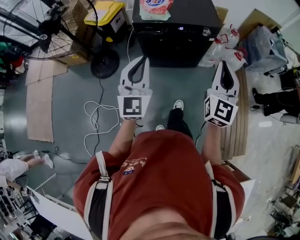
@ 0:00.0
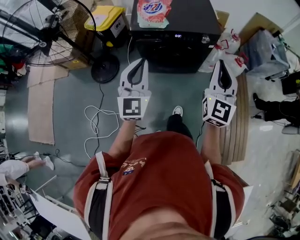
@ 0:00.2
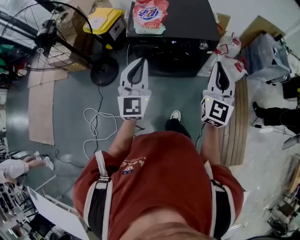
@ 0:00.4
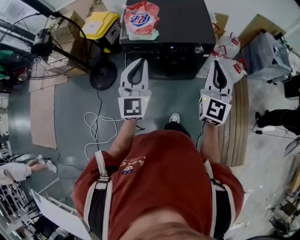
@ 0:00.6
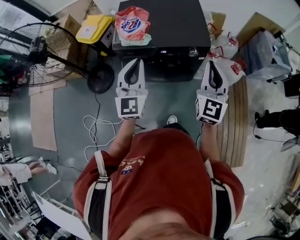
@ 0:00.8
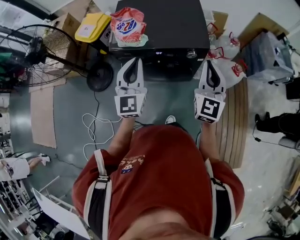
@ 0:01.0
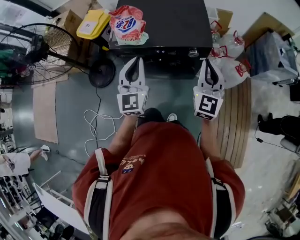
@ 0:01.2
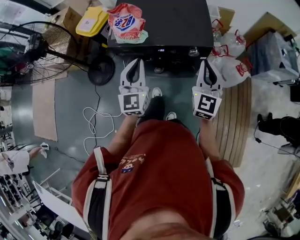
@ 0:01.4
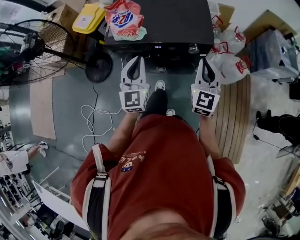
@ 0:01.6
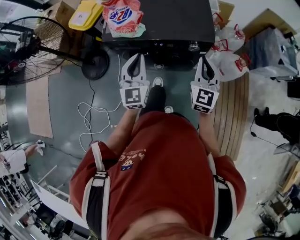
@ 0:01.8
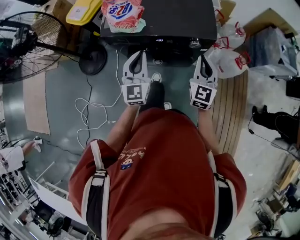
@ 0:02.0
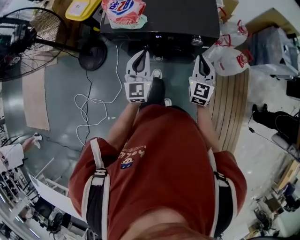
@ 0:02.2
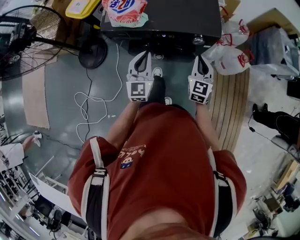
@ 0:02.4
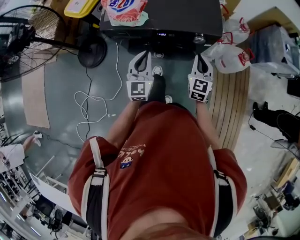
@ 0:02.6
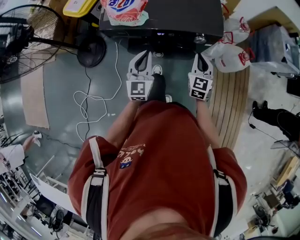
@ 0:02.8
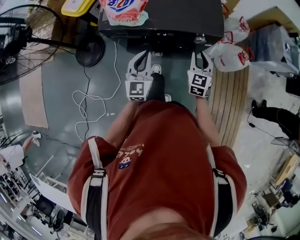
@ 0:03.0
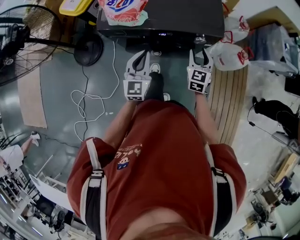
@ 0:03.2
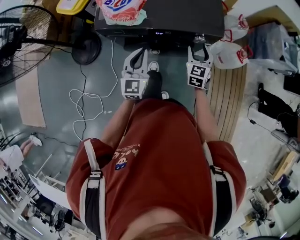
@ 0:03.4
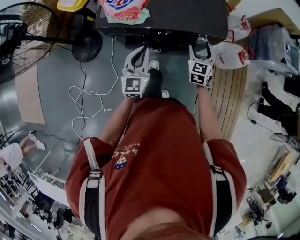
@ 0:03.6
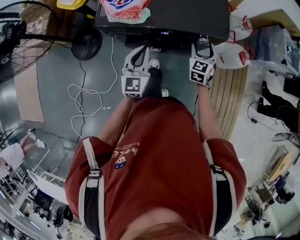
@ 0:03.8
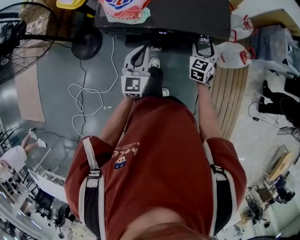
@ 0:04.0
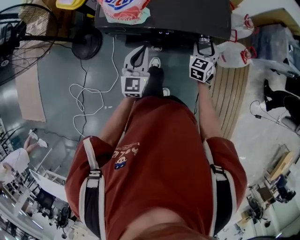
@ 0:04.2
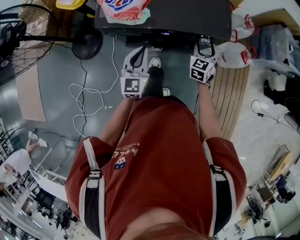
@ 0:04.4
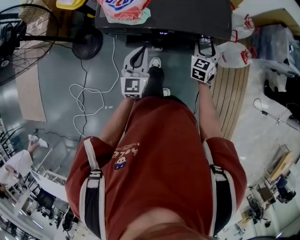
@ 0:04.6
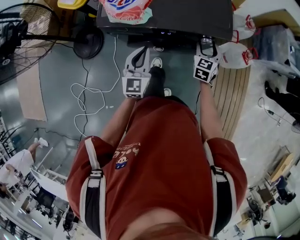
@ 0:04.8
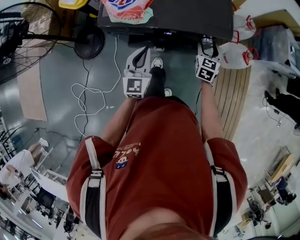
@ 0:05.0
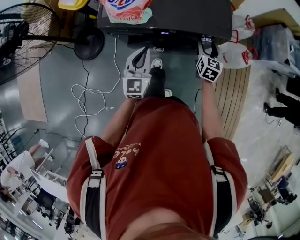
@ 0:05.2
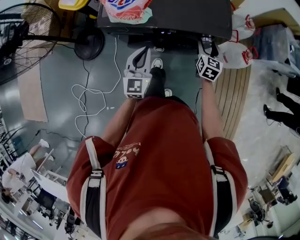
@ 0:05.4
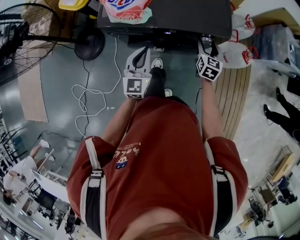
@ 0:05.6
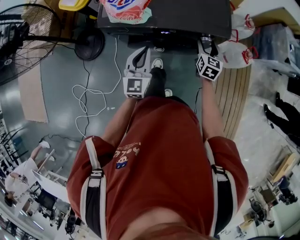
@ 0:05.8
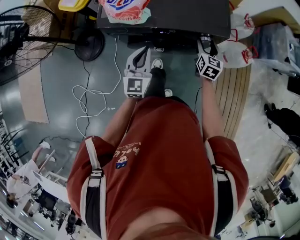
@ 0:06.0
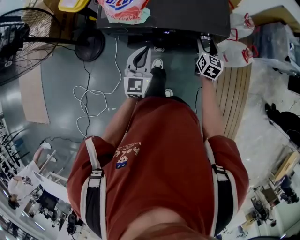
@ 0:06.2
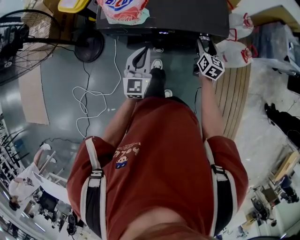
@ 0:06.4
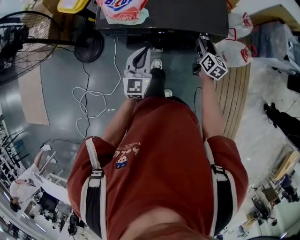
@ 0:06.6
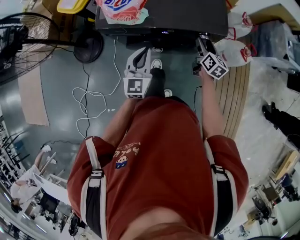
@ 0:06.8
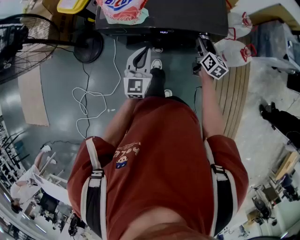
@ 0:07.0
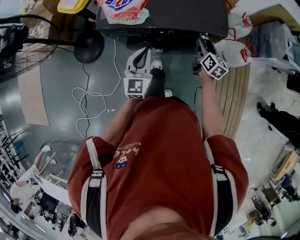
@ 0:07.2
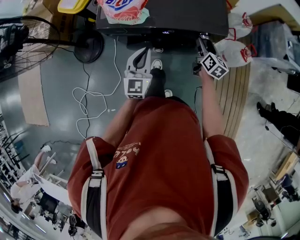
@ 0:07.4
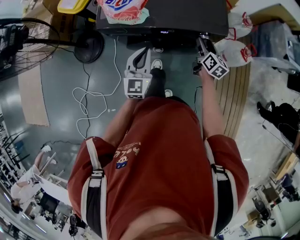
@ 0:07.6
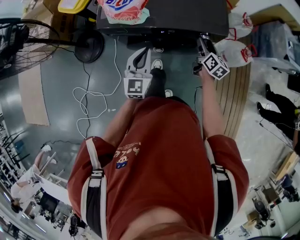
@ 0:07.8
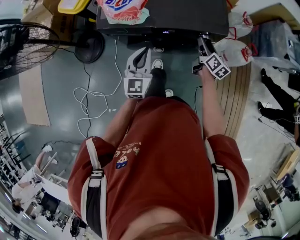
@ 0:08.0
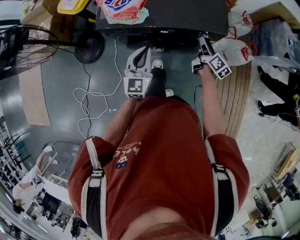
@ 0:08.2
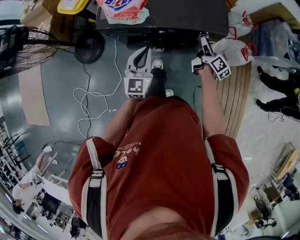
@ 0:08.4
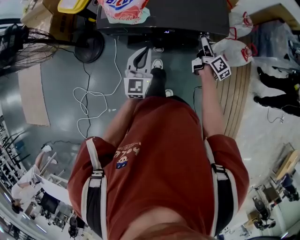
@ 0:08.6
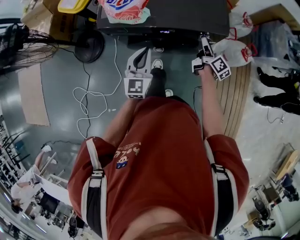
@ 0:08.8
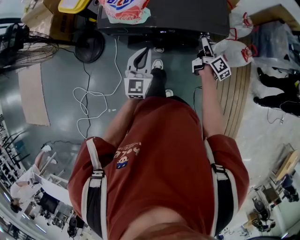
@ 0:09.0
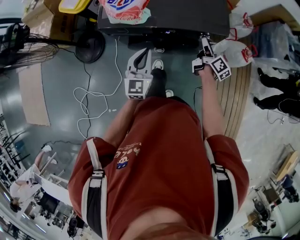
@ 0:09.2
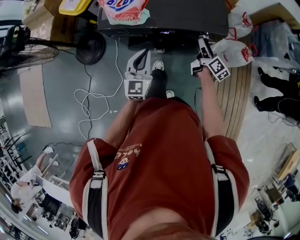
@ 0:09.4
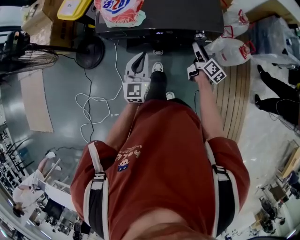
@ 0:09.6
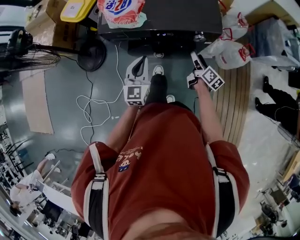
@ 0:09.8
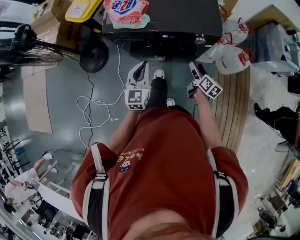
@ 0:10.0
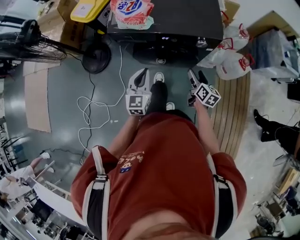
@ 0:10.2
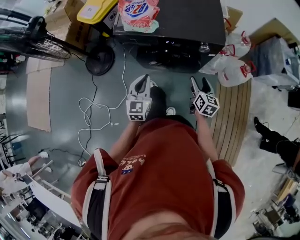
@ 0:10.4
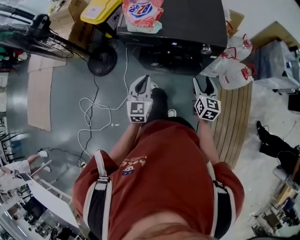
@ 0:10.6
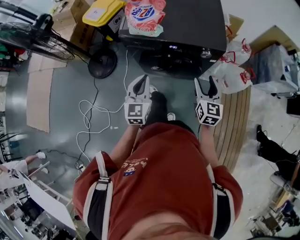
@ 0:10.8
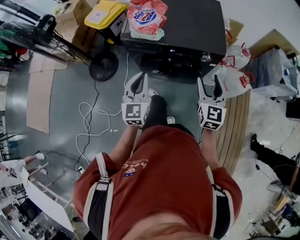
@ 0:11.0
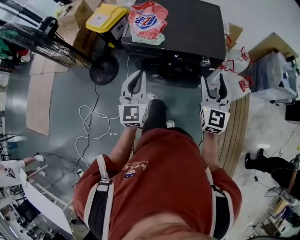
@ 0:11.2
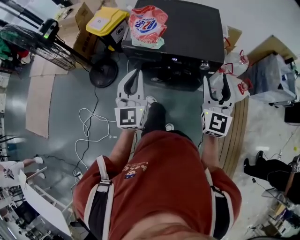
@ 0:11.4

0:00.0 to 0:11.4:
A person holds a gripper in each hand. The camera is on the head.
0:00.0 to 0:01.4: The left gripper is displaced forward and to the right by some 35 cm. The right gripper heads forward, covering approximately 30 cm.
0:01.4 to 0:02.8: The two grippers go roughly 20 cm downward.
0:02.8 to 0:04.2: The left gripper moves some 5 cm, while the right gripper moves forward and downward, about 10 cm, and opens up.
0:04.2 to 0:05.6: The right gripper changes its angle by about 20 degrees.
0:05.6 to 0:07.2: The right gripper turns by approximately 30 degrees.
0:07.2 to 0:08.6: The right gripper rotates some 30 degrees.
0:08.6 to 0:10.0: The right gripper shifts about 15 cm backward, and swivels some 20 degrees; the left gripper is displaced backward by some 5 cm.
0:10.0 to 0:11.4: The right gripper goes about 35 cm upward, and rotates around the line of its fingers by some 60 degrees, counterclockwise from behind. The left gripper heads upward, covering approximately 20 cm, and rotates roughly 20 degrees.

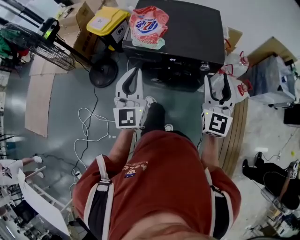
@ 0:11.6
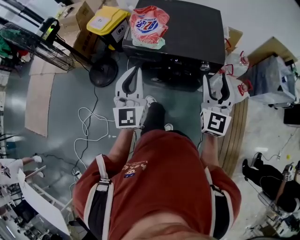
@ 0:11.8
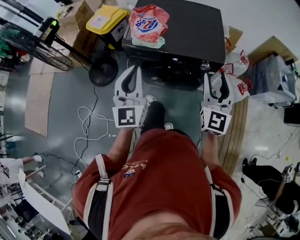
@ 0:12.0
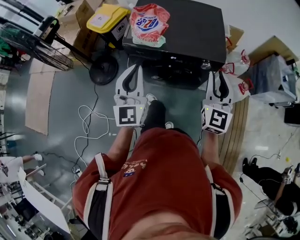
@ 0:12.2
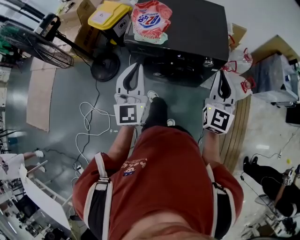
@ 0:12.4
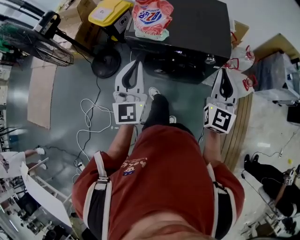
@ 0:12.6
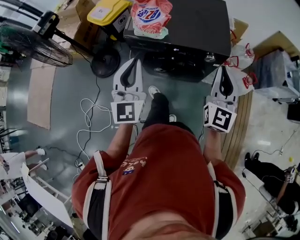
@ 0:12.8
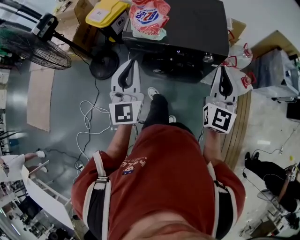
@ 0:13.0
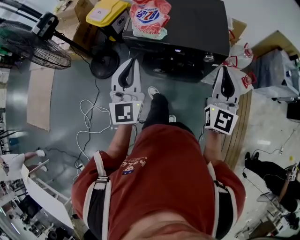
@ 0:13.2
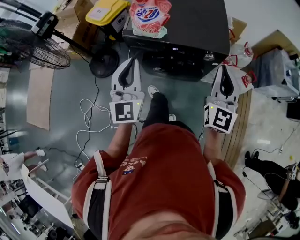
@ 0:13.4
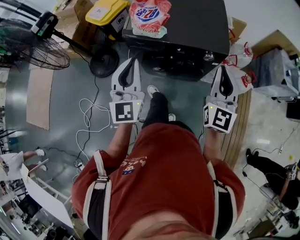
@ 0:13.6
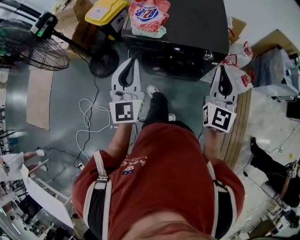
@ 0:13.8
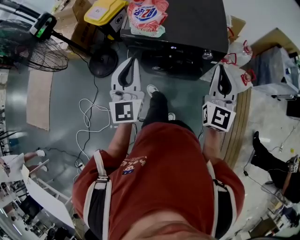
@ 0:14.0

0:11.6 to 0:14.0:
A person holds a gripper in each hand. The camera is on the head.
0:11.6 to 0:12.8: The right gripper closes.
0:12.8 to 0:14.0: Neither gripper changes place.

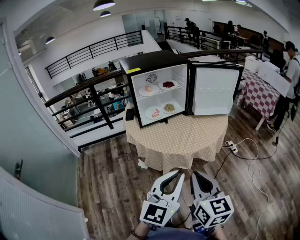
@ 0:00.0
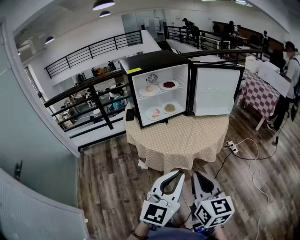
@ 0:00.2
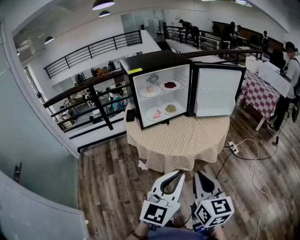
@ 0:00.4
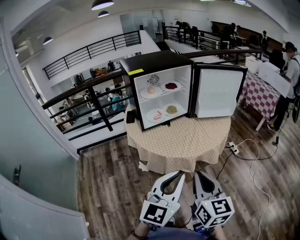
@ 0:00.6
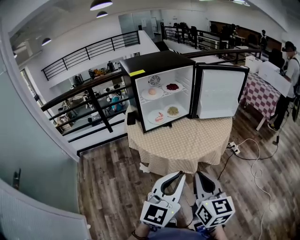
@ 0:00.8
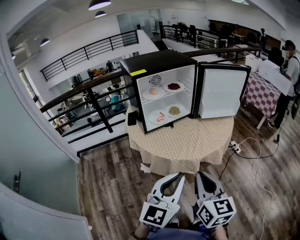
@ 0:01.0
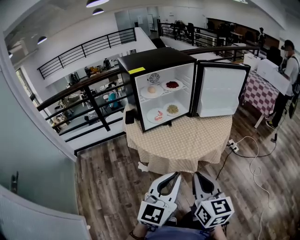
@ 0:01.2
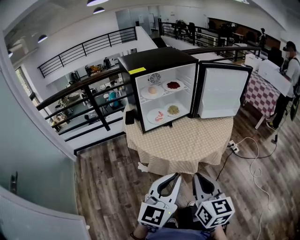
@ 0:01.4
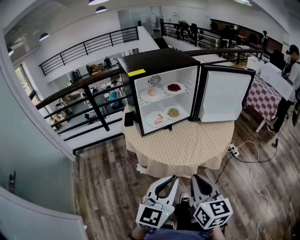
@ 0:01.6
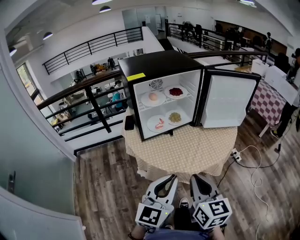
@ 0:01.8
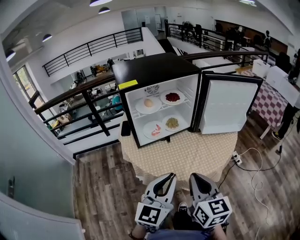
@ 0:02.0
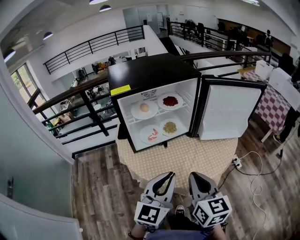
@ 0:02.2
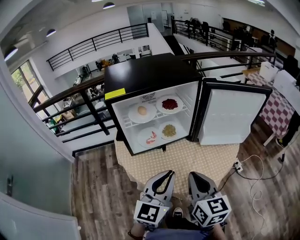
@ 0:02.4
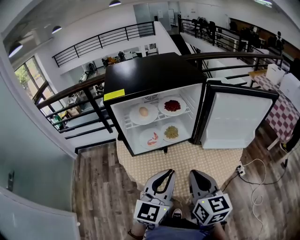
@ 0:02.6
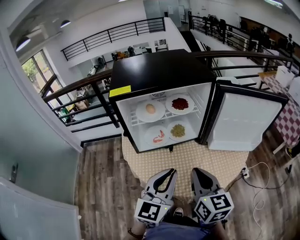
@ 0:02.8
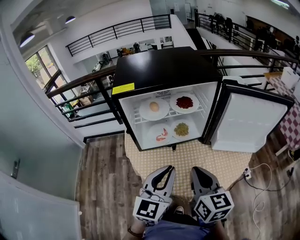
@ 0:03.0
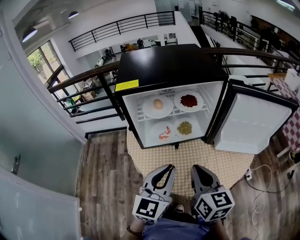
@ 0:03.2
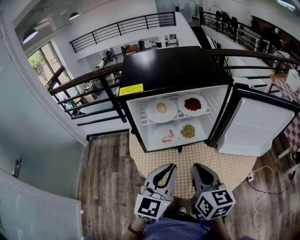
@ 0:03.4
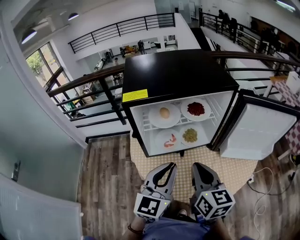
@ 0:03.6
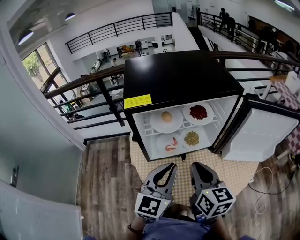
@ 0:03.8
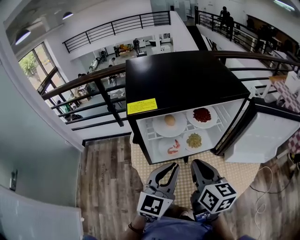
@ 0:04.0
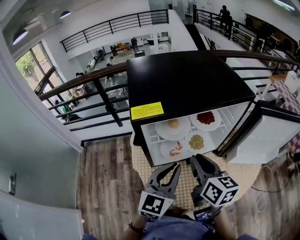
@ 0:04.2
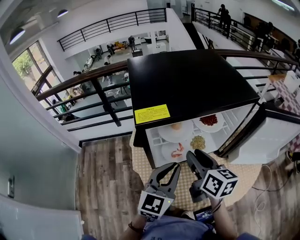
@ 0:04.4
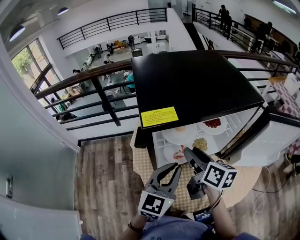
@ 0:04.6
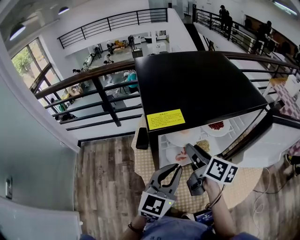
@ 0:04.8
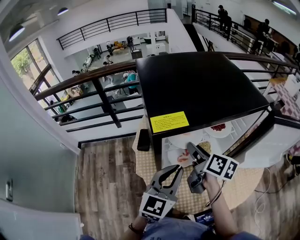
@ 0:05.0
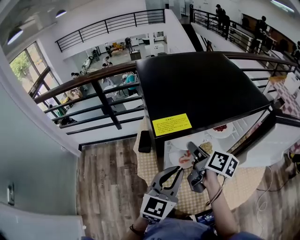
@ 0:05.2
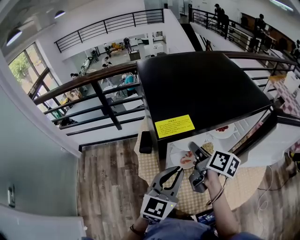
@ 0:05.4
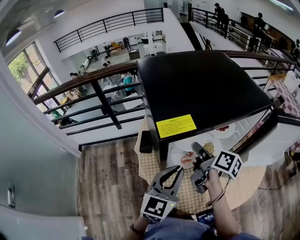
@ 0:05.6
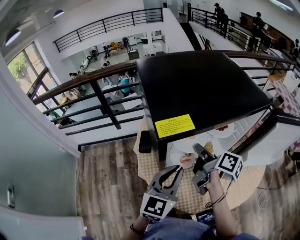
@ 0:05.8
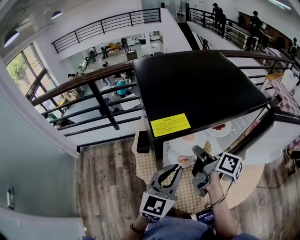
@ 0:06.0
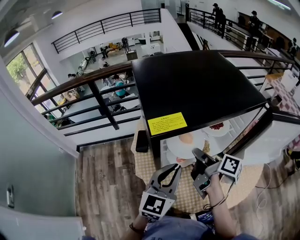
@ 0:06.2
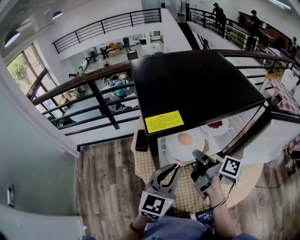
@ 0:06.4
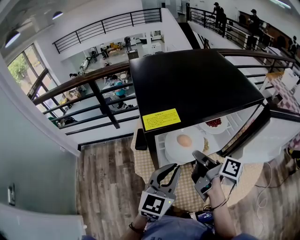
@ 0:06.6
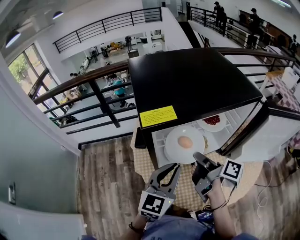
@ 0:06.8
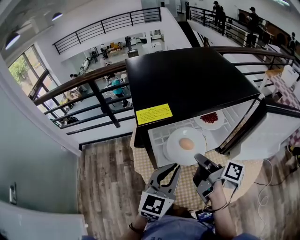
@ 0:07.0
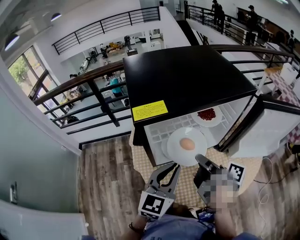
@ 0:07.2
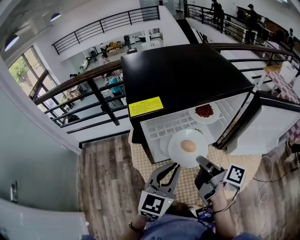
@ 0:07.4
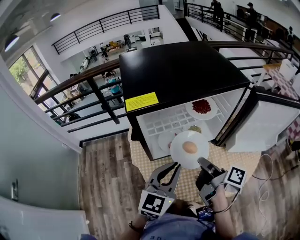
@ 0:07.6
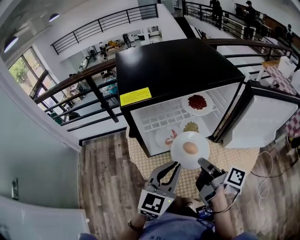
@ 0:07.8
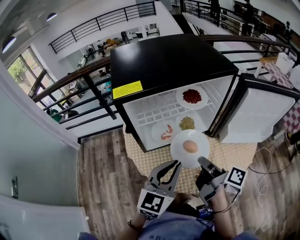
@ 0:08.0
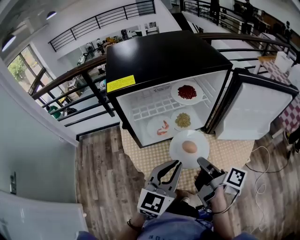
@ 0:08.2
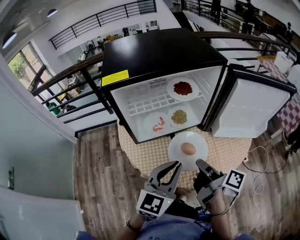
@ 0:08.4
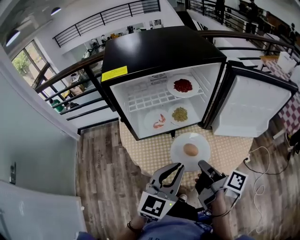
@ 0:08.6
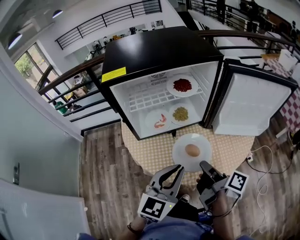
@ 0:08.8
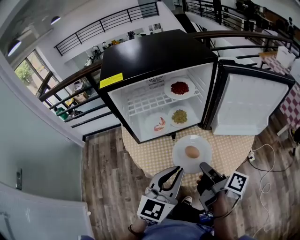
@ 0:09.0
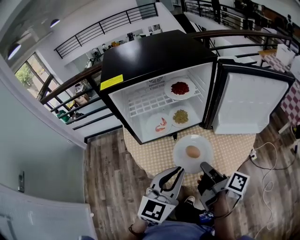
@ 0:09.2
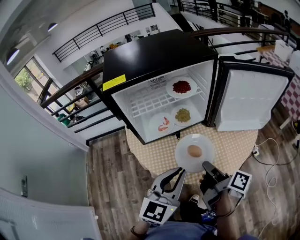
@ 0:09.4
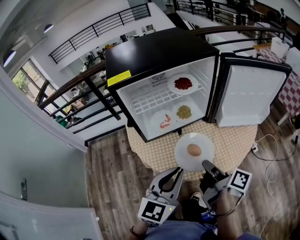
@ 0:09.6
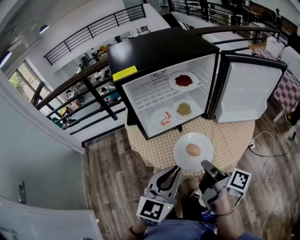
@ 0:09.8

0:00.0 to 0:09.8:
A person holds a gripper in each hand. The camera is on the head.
0:00.0 to 0:01.4: The right gripper is displaced forward and to the left by about 10 cm; the left gripper travels to the left and forward by roughly 10 cm.
0:01.4 to 0:02.8: Both grippers travel together forward, about 25 cm.
0:02.8 to 0:04.2: The grippers both shift forward and to the left by some 20 cm.
0:04.2 to 0:05.6: The left gripper shifts approximately 5 cm to the left. Meanwhile the right gripper is displaced forward by approximately 10 cm, swivels roughly 40 degrees, and opens.
0:05.6 to 0:07.0: The right gripper is displaced backward and to the right by some 10 cm, and closes.
0:07.0 to 0:08.4: The left gripper moves to the right and backward, roughly 15 cm. Meanwhile the right gripper moves backward and to the right, some 20 cm.
0:08.4 to 0:09.8: The right gripper moves backward, roughly 10 cm. Meanwhile the left gripper travels backward and to the left by about 10 cm.
